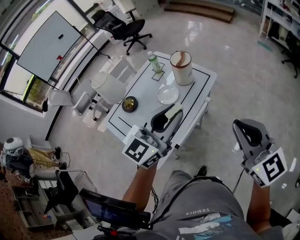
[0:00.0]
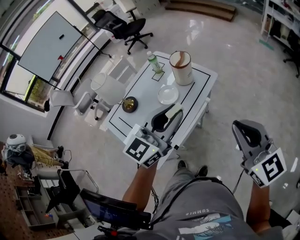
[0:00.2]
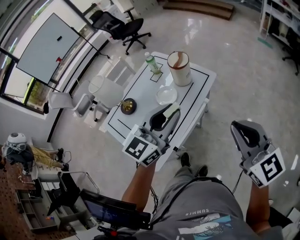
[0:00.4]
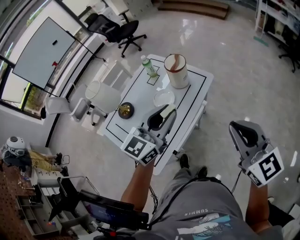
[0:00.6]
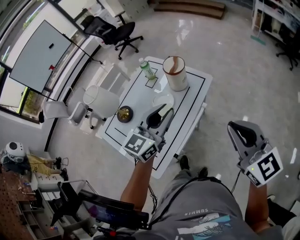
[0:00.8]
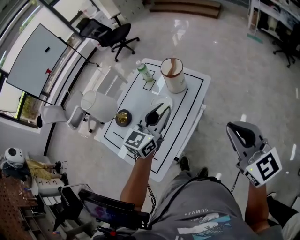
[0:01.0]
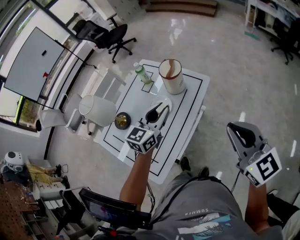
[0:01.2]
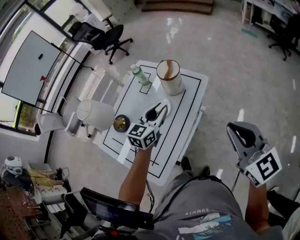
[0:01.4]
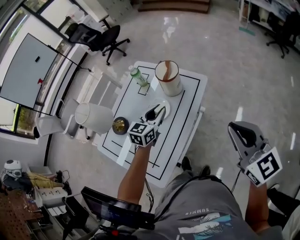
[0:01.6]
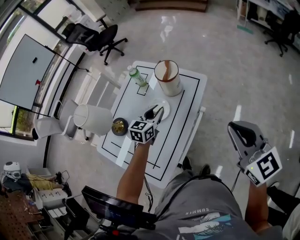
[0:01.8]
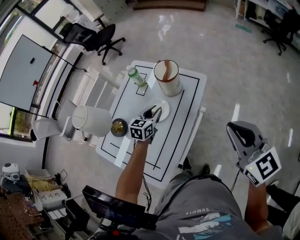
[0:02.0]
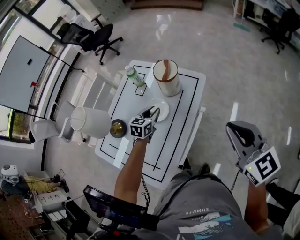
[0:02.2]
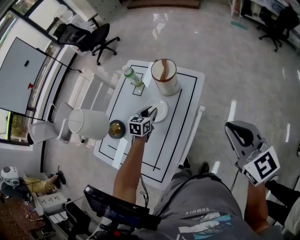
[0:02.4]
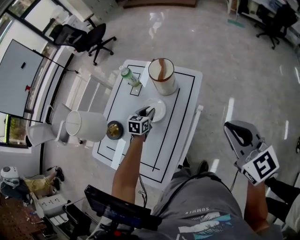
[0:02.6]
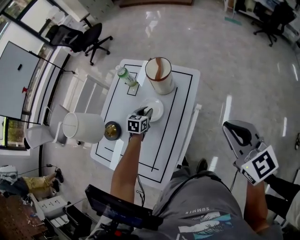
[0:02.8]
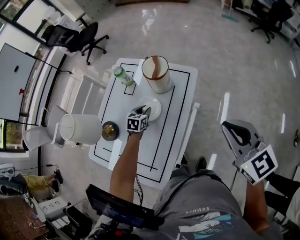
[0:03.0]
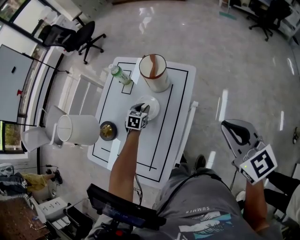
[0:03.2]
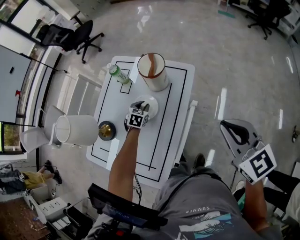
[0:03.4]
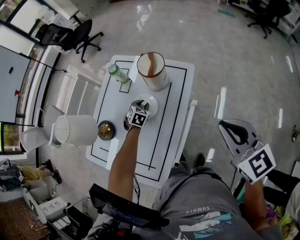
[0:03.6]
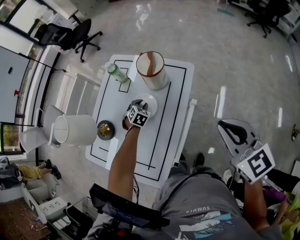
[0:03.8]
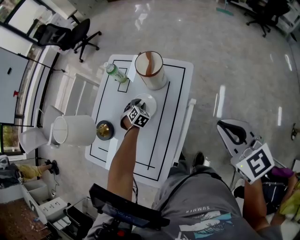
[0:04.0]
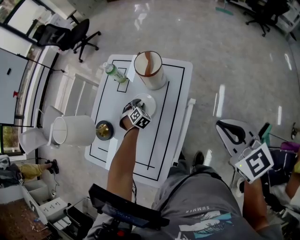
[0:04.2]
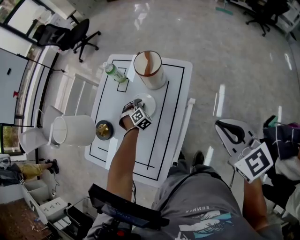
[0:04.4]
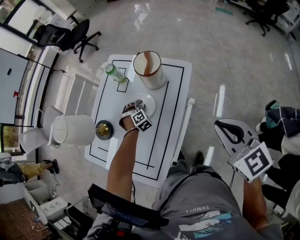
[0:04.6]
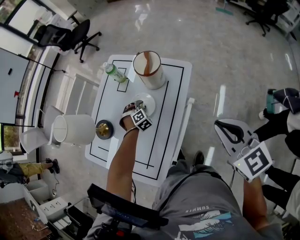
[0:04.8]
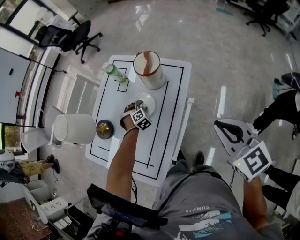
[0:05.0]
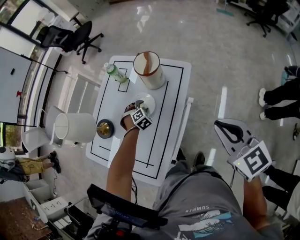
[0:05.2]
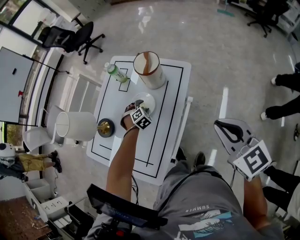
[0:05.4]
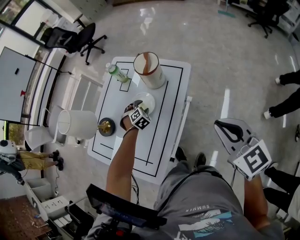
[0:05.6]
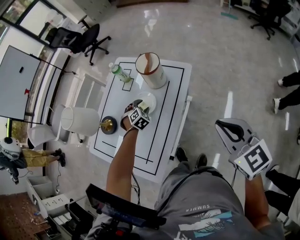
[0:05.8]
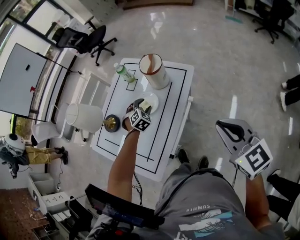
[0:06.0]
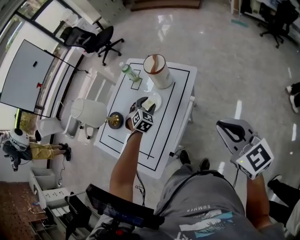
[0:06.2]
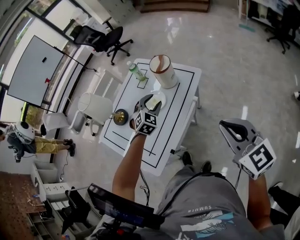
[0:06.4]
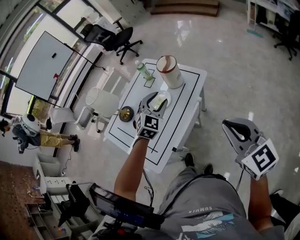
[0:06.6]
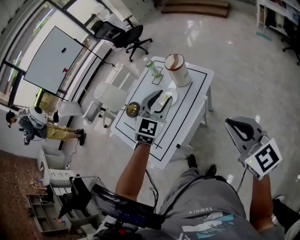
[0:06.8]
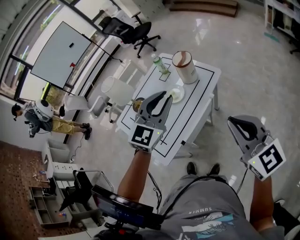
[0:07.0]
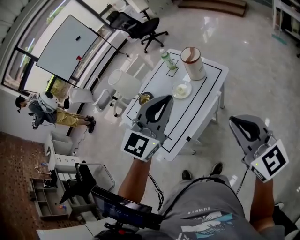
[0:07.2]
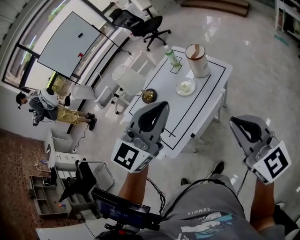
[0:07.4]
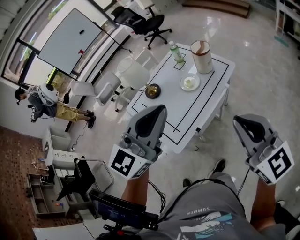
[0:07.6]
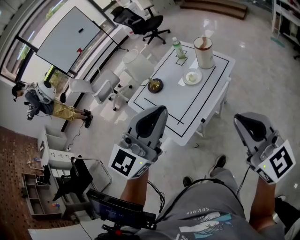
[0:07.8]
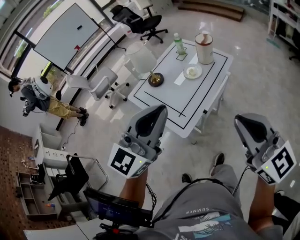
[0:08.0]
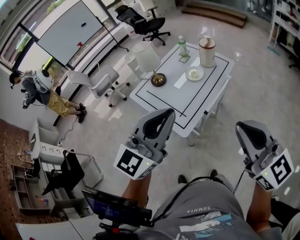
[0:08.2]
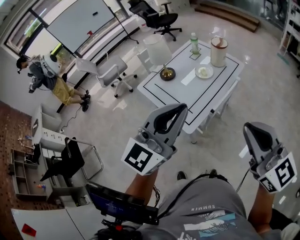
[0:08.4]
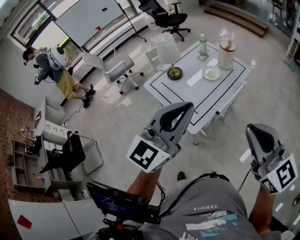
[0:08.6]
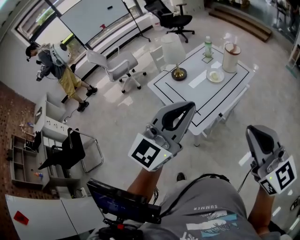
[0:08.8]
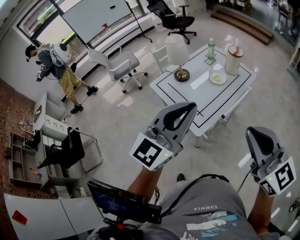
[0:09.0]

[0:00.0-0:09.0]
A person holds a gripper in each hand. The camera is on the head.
0:00.0 to 0:01.6: The left gripper shifts approximately 30 cm downward and forward, and swivels some 30 degrees; the right gripper moves forward, some 10 cm.
0:01.6 to 0:03.0: The left gripper moves downward, some 20 cm, and turns by about 30 degrees, while the right gripper moves approximately 5 cm.
0:03.0 to 0:04.4: The left gripper rotates around the line of its fingers by approximately 50 degrees, clockwise from behind.
0:04.4 to 0:06.0: The left gripper goes about 10 cm upward and backward, and opens. Meanwhile the right gripper goes roughly 5 cm backward.
0:06.0 to 0:07.6: The left gripper shifts about 50 cm upward and backward, angles its fingers upward, by about 60 degrees, and closes, while the right gripper shifts about 15 cm backward, upward and to the left, and changes its angle by about 30 degrees.
0:07.6 to 0:09.0: The left gripper travels backward and to the left by approximately 20 cm. Meanwhile the right gripper goes approximately 20 cm to the left and backward.

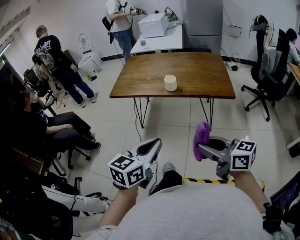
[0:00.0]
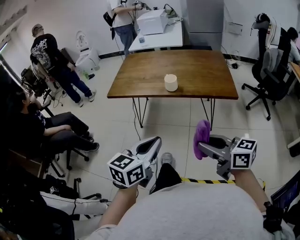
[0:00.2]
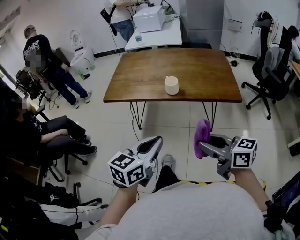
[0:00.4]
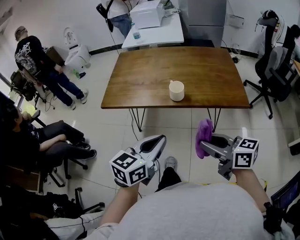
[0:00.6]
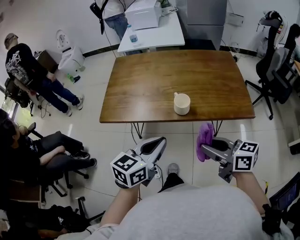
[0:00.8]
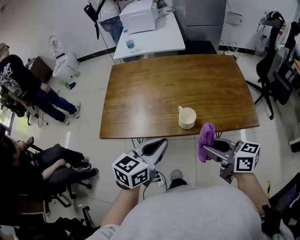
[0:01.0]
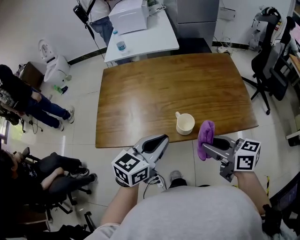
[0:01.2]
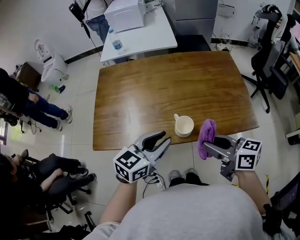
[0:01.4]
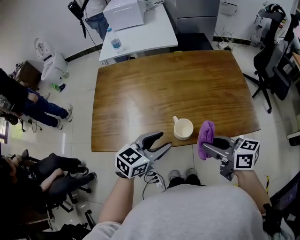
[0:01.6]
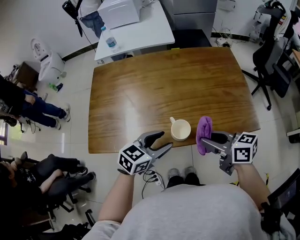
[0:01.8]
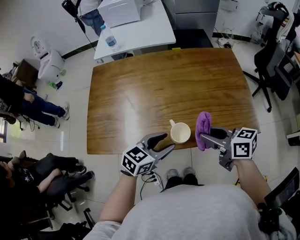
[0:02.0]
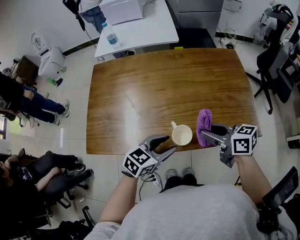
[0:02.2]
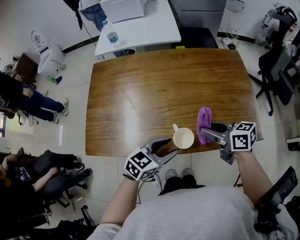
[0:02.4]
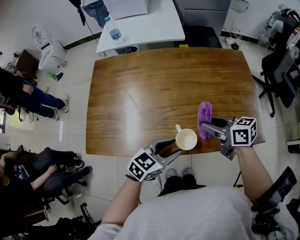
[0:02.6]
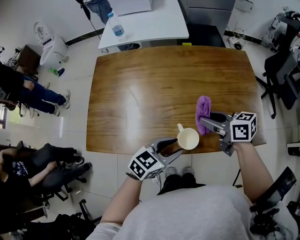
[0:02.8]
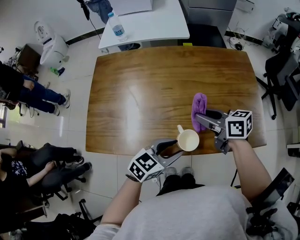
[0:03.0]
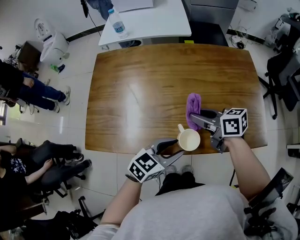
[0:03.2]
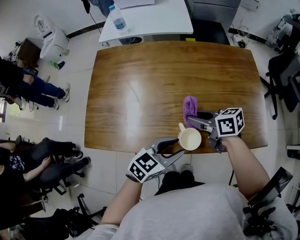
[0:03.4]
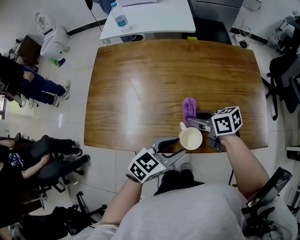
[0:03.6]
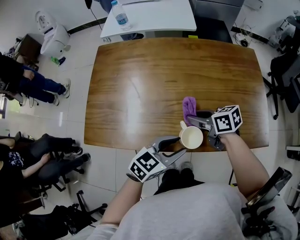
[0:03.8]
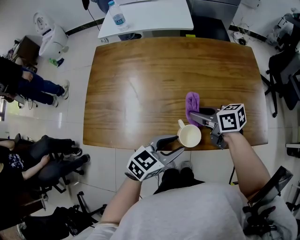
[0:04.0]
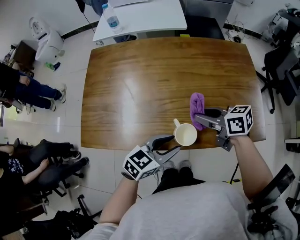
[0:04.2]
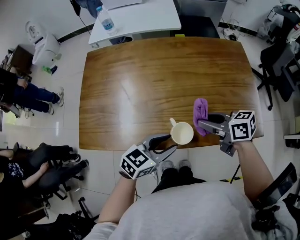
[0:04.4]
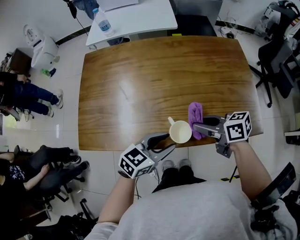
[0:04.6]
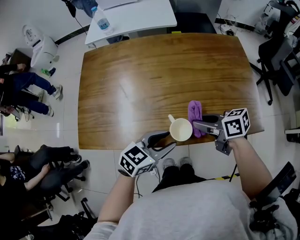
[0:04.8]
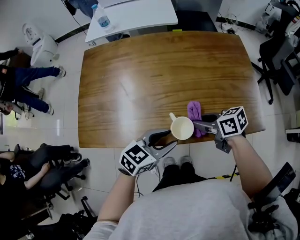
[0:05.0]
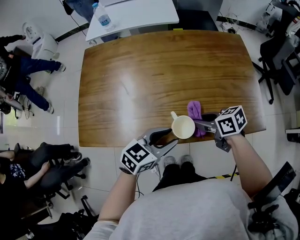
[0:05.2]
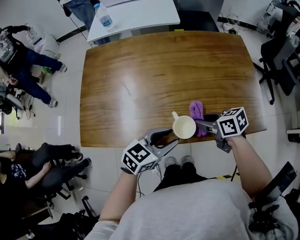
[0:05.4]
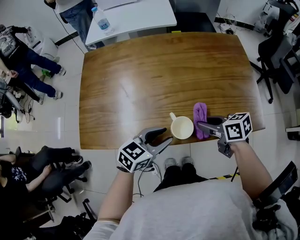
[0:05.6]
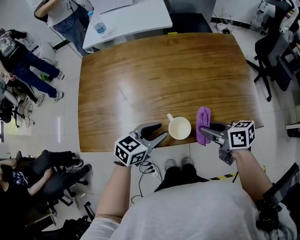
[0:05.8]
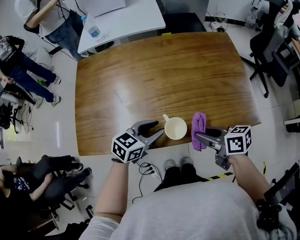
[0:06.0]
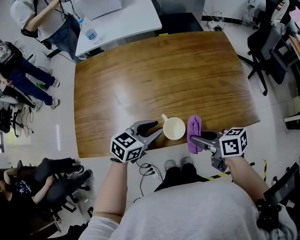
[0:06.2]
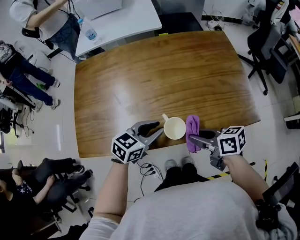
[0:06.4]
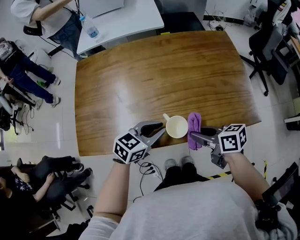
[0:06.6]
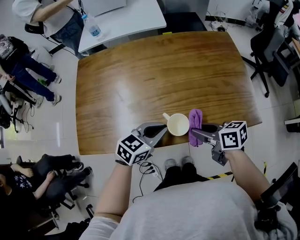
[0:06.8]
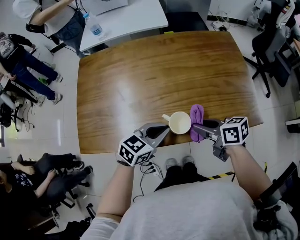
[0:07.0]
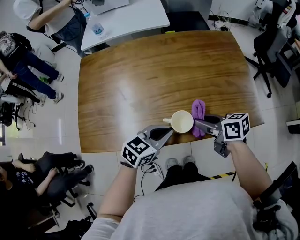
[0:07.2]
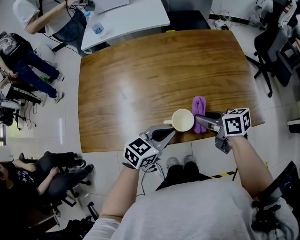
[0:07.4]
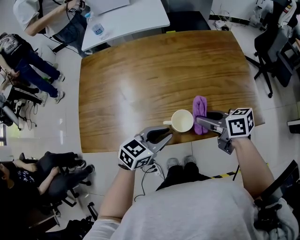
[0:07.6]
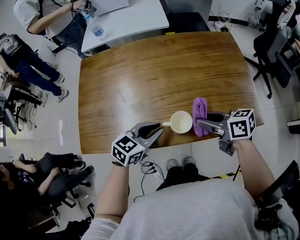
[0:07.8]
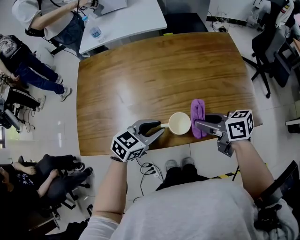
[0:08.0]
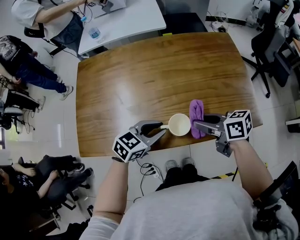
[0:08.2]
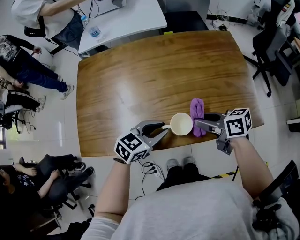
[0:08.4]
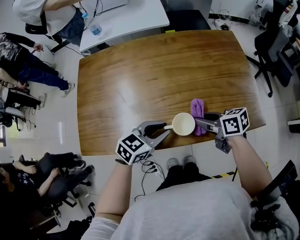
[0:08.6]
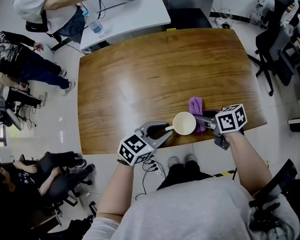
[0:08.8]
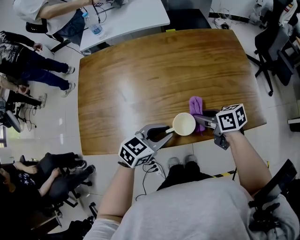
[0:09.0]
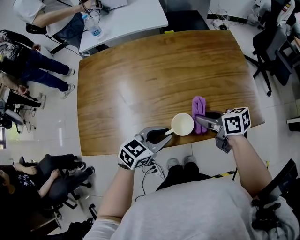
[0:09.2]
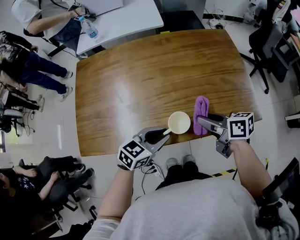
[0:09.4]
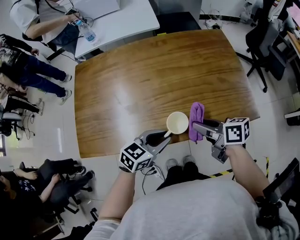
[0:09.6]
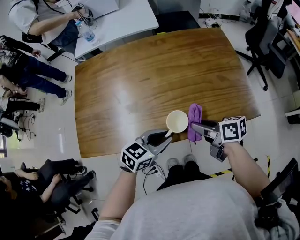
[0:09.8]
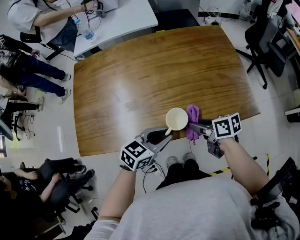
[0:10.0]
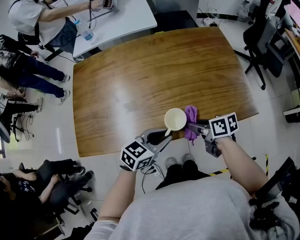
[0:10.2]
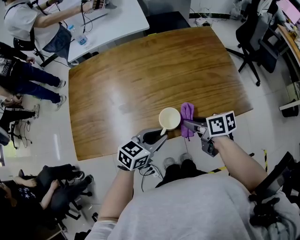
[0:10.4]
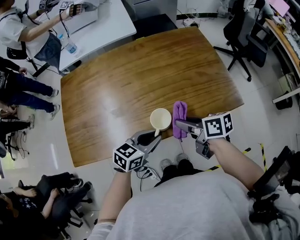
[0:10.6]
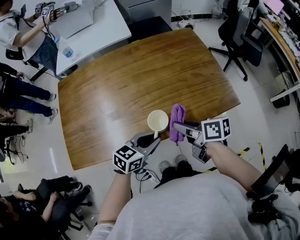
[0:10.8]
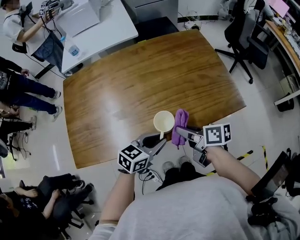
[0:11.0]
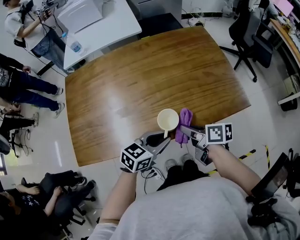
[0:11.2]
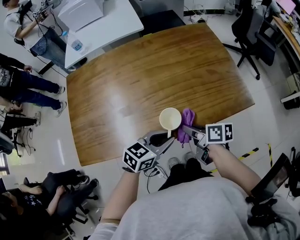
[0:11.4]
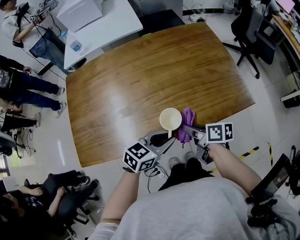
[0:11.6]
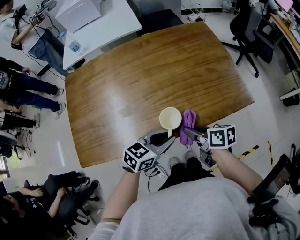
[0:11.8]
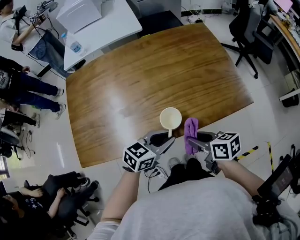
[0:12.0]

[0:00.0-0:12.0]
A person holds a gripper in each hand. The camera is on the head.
0:00.0 to 0:01.6: The pair of grippers is taken forward, approximately 50 cm. The right gripper turns by approximately 20 degrees; the left gripper turns by approximately 30 degrees, and opens.
0:01.6 to 0:03.0: The left gripper moves downward, roughly 10 cm, while the right gripper goes about 20 cm forward and downward.
0:03.0 to 0:04.4: The right gripper moves some 10 cm downward and comes back.
0:04.4 to 0:06.0: The right gripper ends up some 10 cm from where it was, while the left gripper ends up some 5 cm from where it was.
0:06.0 to 0:07.6: The grippers stay close to where they were, moving slightly.
0:07.6 to 0:09.0: The right gripper moves downward, some 5 cm.
0:09.0 to 0:10.4: The right gripper moves some 5 cm upward and comes back.
0:10.4 to 0:12.0: The right gripper moves up and down over approximately 10 cm, changing direction 2 times.

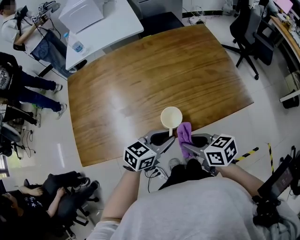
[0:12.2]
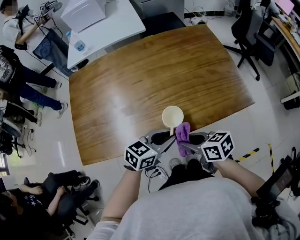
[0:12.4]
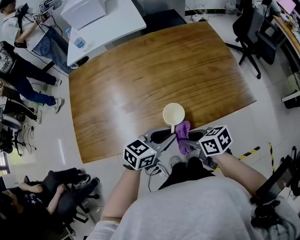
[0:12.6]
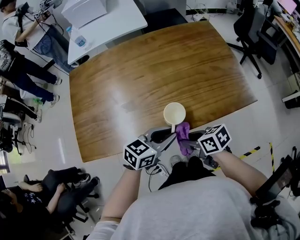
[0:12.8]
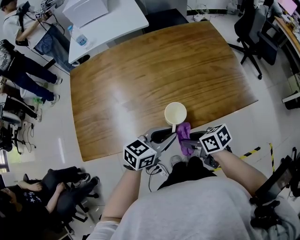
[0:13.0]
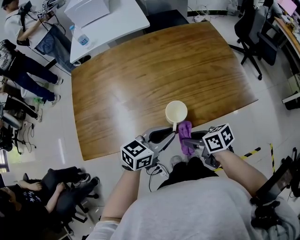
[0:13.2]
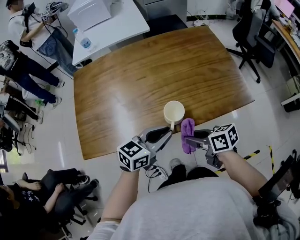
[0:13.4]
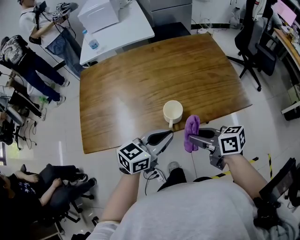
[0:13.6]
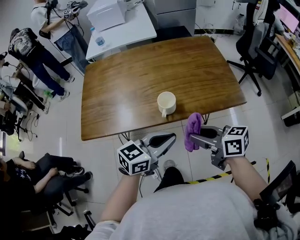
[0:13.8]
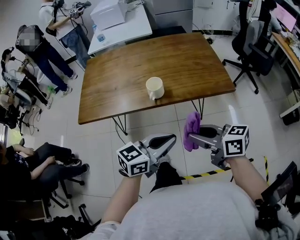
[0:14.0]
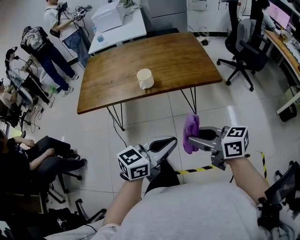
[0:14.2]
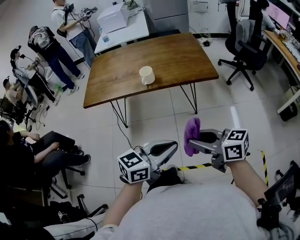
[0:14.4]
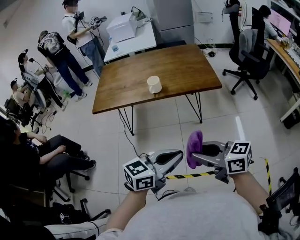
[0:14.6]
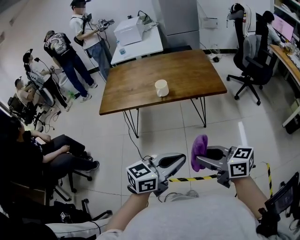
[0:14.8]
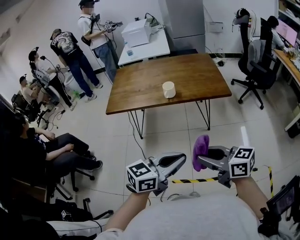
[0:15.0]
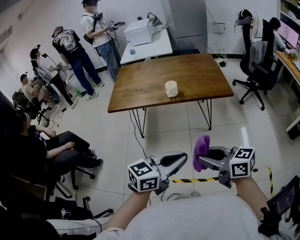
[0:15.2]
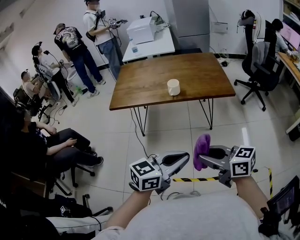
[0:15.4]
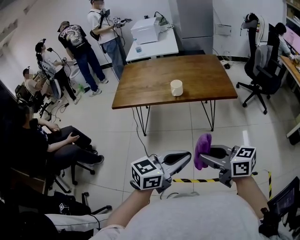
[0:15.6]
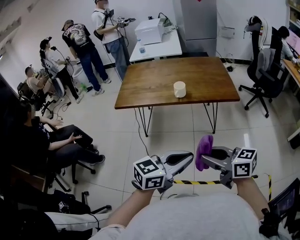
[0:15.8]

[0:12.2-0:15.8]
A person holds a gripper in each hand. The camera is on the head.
0:12.2 to 0:14.0: The left gripper moves some 25 cm. Meanwhile the right gripper ends up approximately 25 cm from where it was, and swivels roughly 20 degrees.
0:14.0 to 0:15.8: The right gripper shifts by roughly 30 cm. Meanwhile the left gripper shifts by roughly 30 cm.
